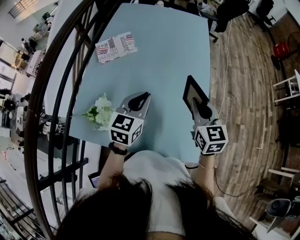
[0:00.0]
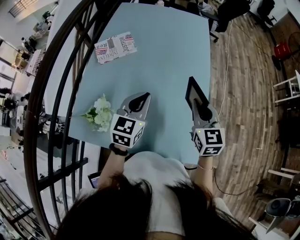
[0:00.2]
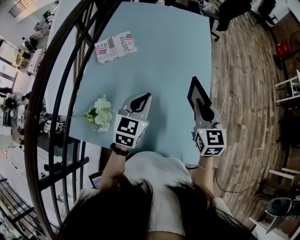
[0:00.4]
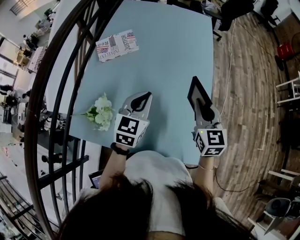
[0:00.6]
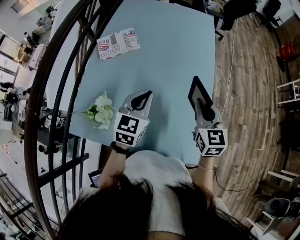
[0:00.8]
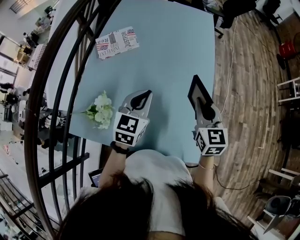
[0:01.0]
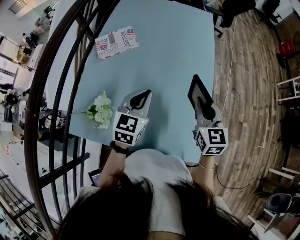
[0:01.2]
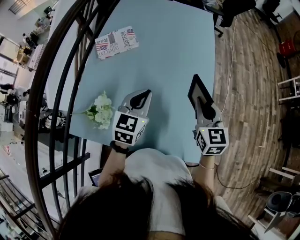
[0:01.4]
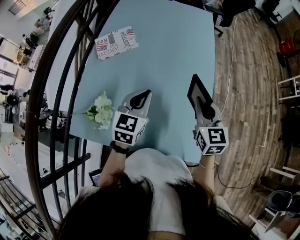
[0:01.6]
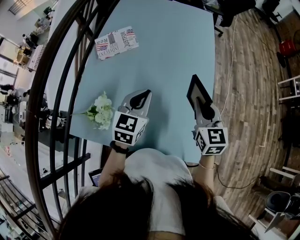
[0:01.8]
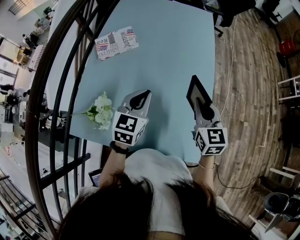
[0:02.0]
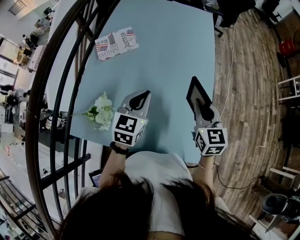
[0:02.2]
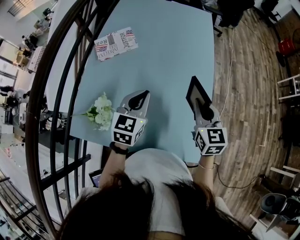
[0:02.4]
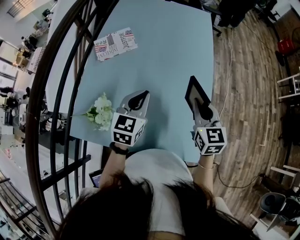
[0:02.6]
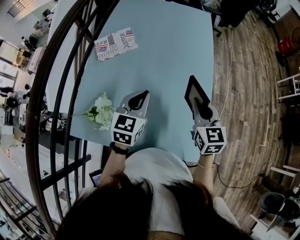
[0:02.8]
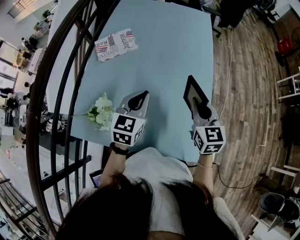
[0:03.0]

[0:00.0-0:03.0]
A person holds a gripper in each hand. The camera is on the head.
0:00.0 to 0:03.0: The grippers make only small movements.

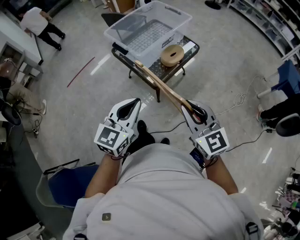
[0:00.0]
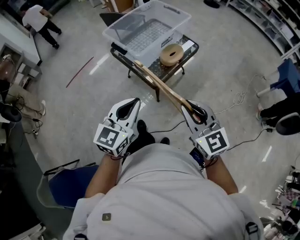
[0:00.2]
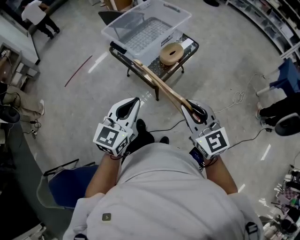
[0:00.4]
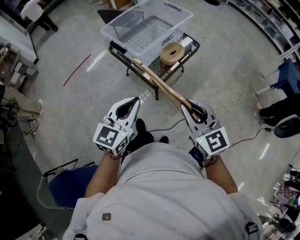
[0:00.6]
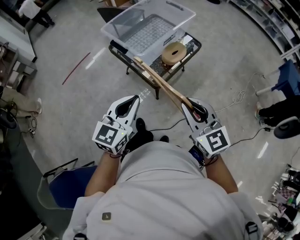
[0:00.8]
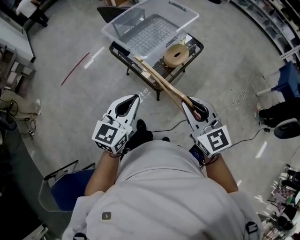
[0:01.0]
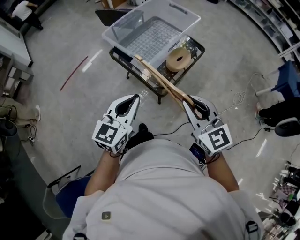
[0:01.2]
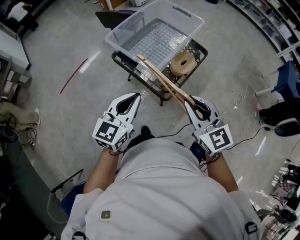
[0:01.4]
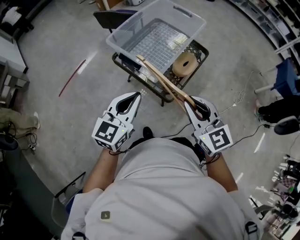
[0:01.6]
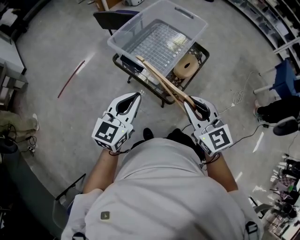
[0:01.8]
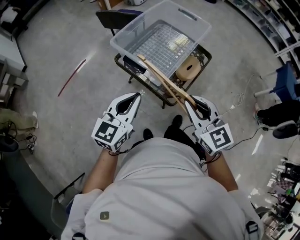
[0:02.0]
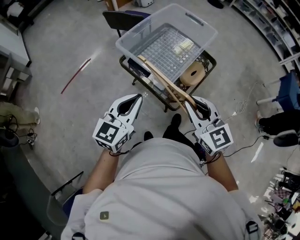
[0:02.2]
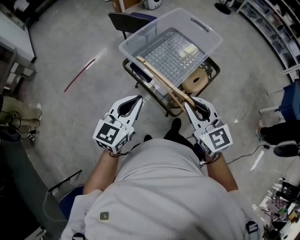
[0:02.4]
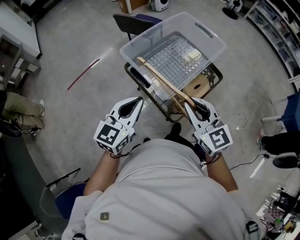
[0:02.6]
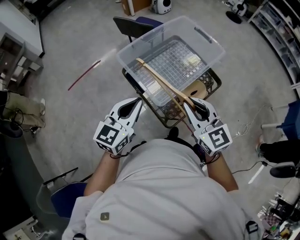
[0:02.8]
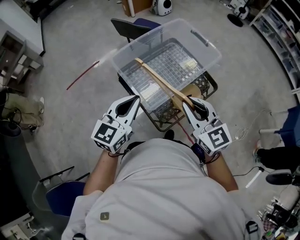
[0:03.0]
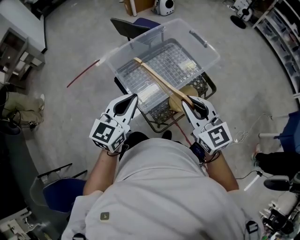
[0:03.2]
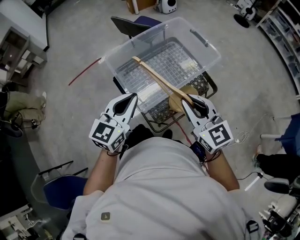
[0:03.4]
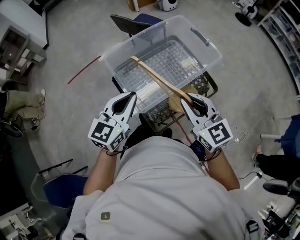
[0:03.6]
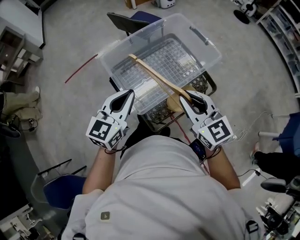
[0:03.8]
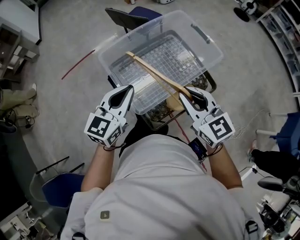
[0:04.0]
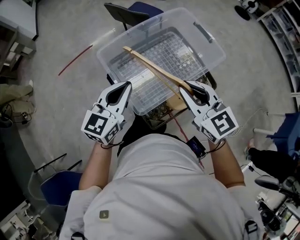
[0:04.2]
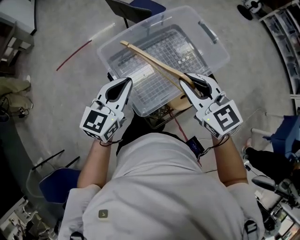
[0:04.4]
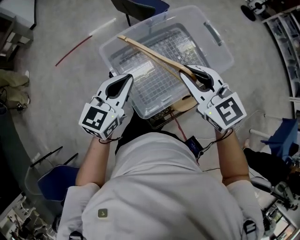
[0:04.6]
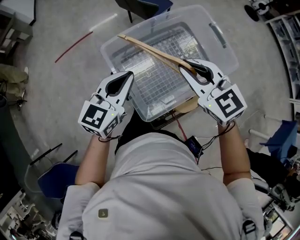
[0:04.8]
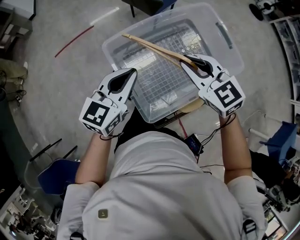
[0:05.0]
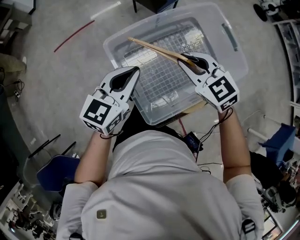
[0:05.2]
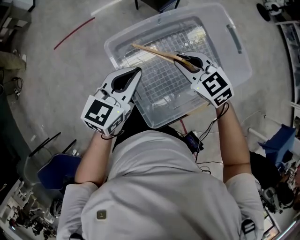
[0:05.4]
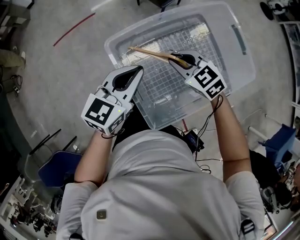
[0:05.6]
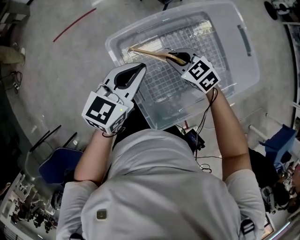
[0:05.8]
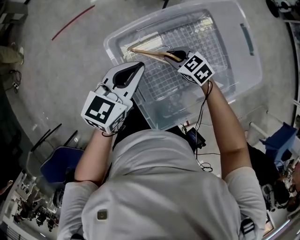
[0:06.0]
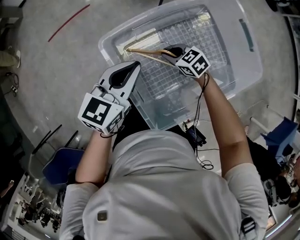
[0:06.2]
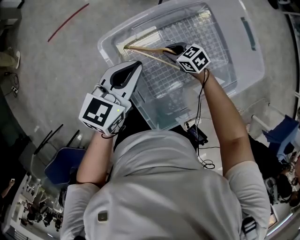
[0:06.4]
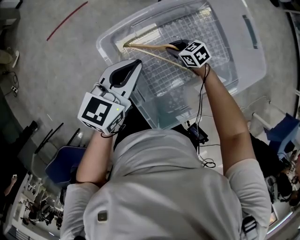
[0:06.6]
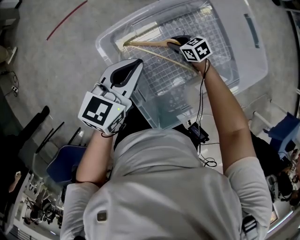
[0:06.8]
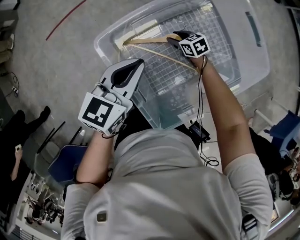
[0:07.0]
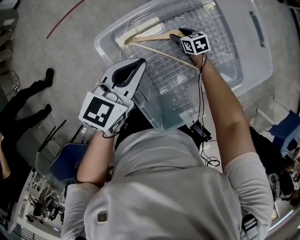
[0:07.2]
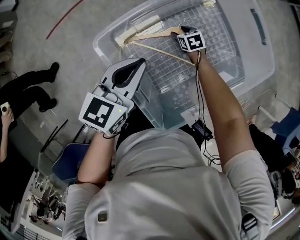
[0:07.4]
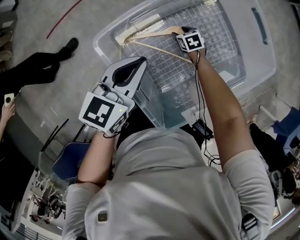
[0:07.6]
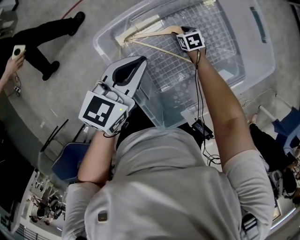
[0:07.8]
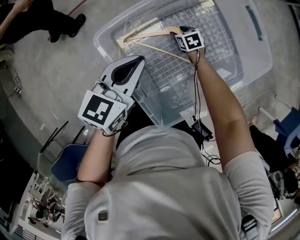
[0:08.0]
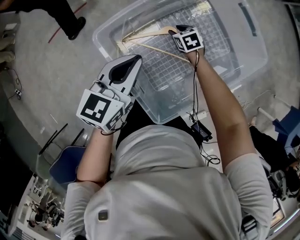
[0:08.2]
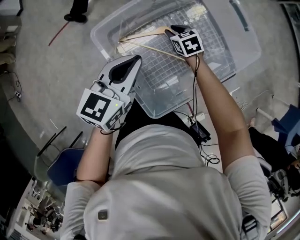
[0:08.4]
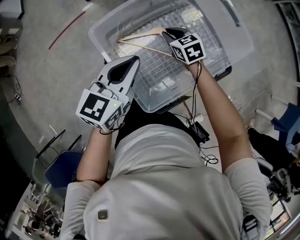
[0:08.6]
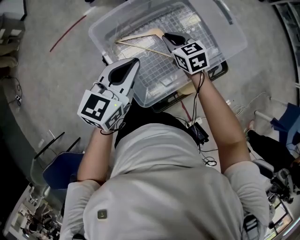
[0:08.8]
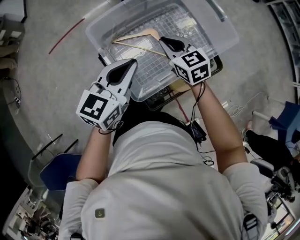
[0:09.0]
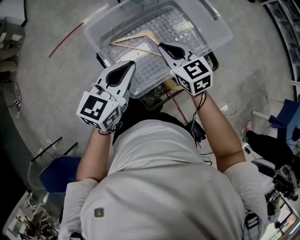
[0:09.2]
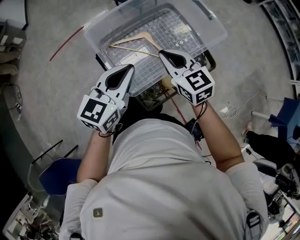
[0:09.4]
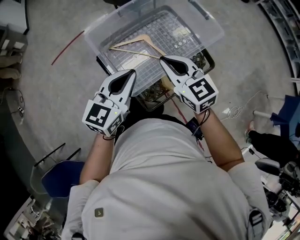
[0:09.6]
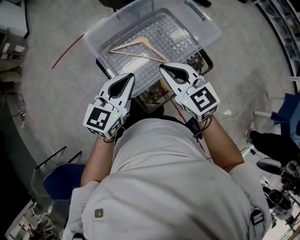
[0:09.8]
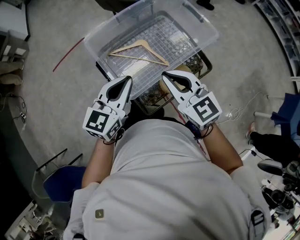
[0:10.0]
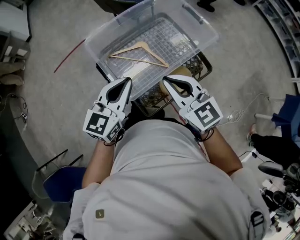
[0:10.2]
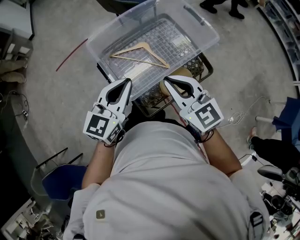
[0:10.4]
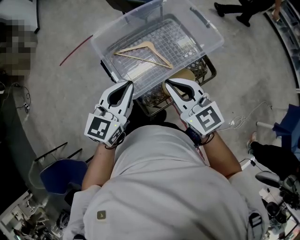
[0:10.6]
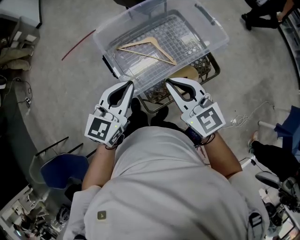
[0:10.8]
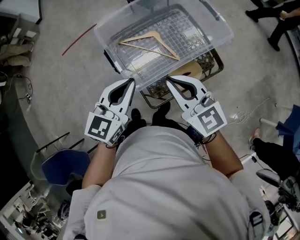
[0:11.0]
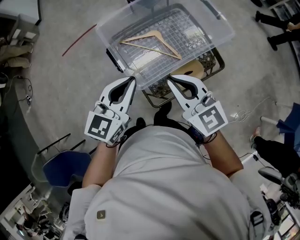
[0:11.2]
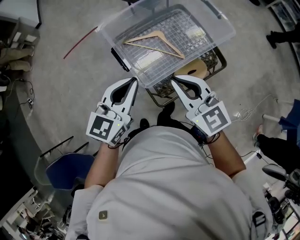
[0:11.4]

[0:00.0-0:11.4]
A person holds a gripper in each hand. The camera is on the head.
0:00.0 to 0:01.4: Both grippers move forward and to the left, roughly 25 cm.
0:01.4 to 0:02.8: Both grippers move forward, some 15 cm.
0:02.8 to 0:04.2: Both grippers move forward and to the right, roughly 15 cm.
0:04.2 to 0:05.6: The left gripper moves forward and downward, approximately 20 cm, while the right gripper goes roughly 30 cm forward, downward and to the left, and turns by some 30 degrees.
0:05.6 to 0:07.2: The right gripper goes approximately 30 cm downward, changes its angle by approximately 40 degrees, and opens. Meanwhile the left gripper goes roughly 5 cm downward.
0:07.2 to 0:08.6: The right gripper goes about 20 cm upward, and closes up; the left gripper moves backward and upward, some 10 cm.
0:08.6 to 0:10.0: The right gripper moves backward and upward, approximately 40 cm, and rotates some 30 degrees. Meanwhile the left gripper moves backward, to the right and upward, roughly 20 cm.
0:10.0 to 0:11.4: The left gripper shifts by some 5 cm. Meanwhile the right gripper shifts by some 5 cm.

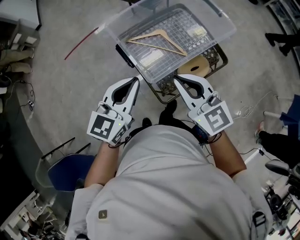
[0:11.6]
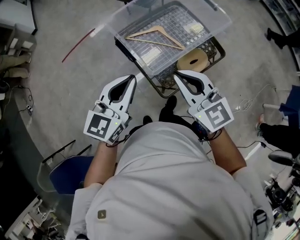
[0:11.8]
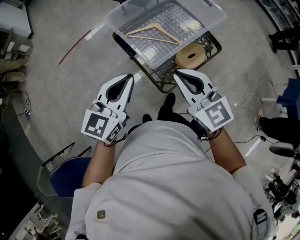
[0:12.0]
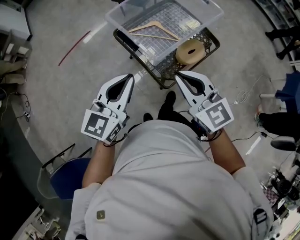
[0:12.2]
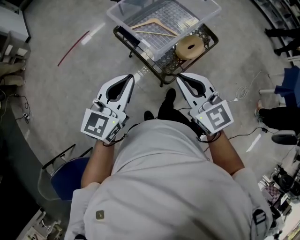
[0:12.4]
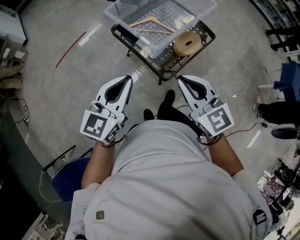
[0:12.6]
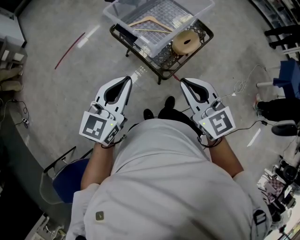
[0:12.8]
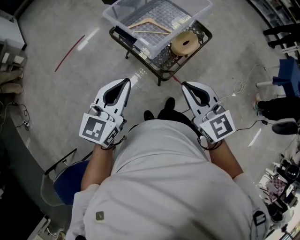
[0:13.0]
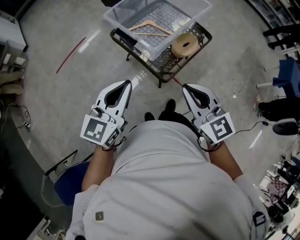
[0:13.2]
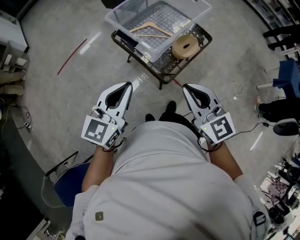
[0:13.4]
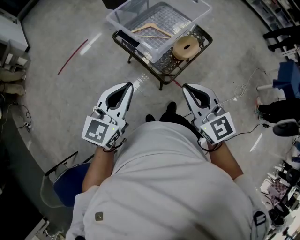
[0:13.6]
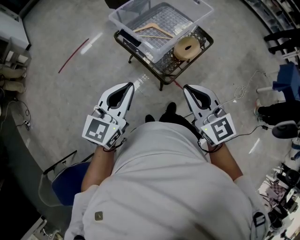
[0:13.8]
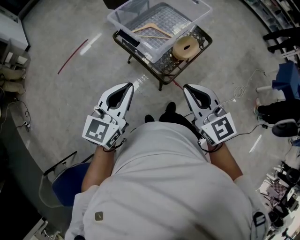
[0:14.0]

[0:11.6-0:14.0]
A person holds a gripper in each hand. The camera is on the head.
0:11.6 to 0:12.8: The right gripper goes approximately 20 cm backward; the left gripper is displaced backward and to the left by some 20 cm.
0:12.8 to 0:14.0: The grippers make only small movements.

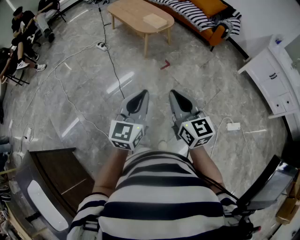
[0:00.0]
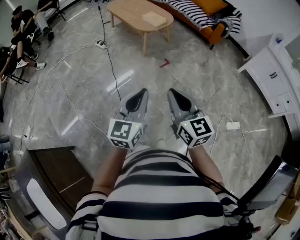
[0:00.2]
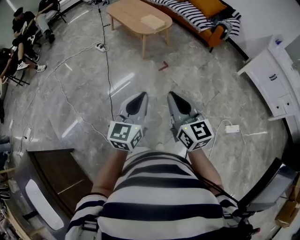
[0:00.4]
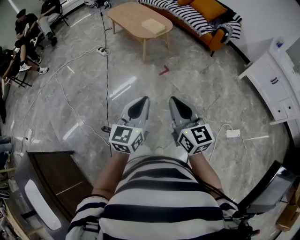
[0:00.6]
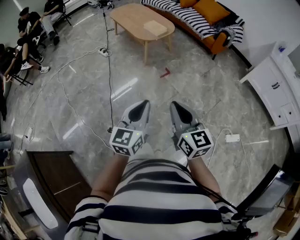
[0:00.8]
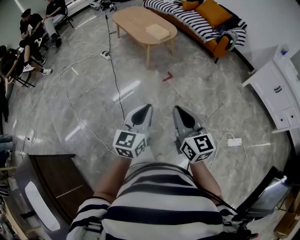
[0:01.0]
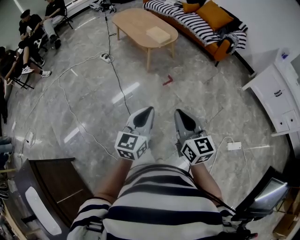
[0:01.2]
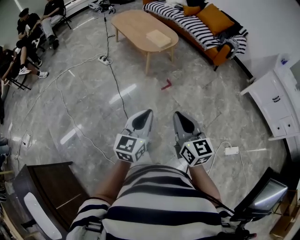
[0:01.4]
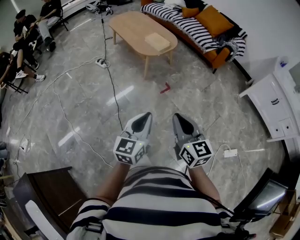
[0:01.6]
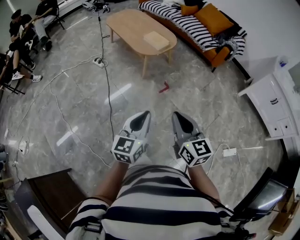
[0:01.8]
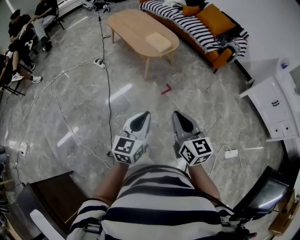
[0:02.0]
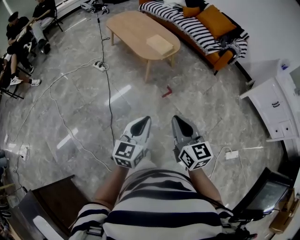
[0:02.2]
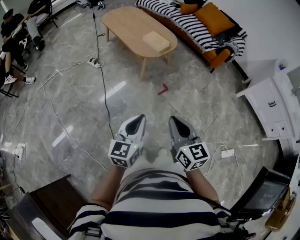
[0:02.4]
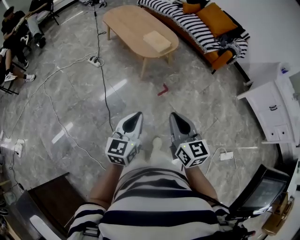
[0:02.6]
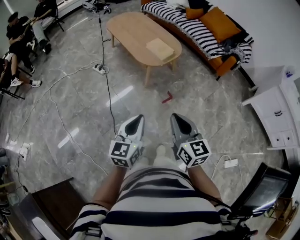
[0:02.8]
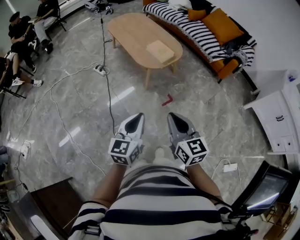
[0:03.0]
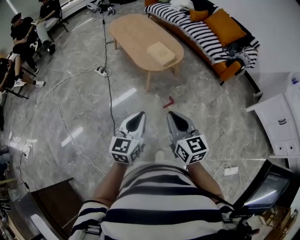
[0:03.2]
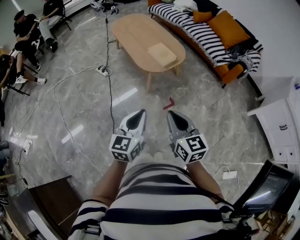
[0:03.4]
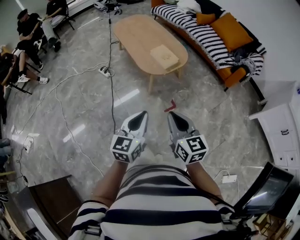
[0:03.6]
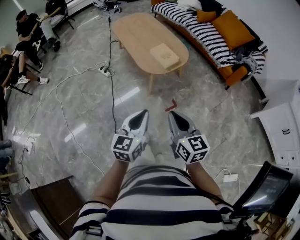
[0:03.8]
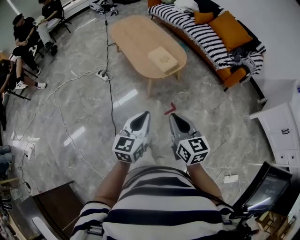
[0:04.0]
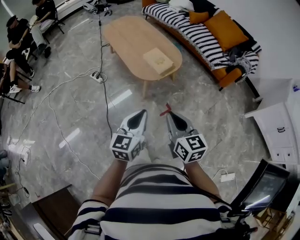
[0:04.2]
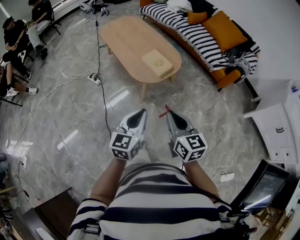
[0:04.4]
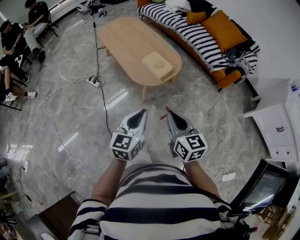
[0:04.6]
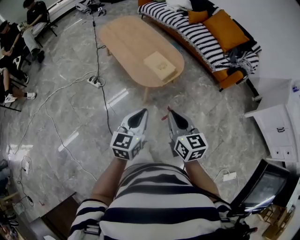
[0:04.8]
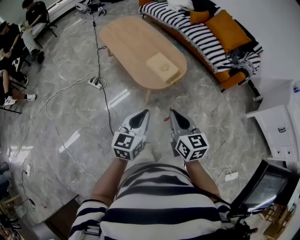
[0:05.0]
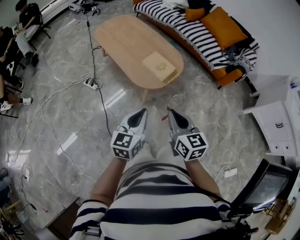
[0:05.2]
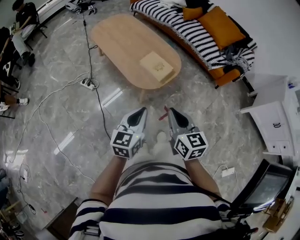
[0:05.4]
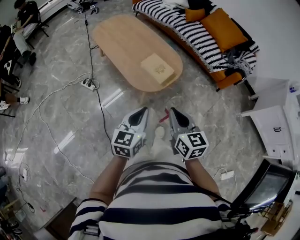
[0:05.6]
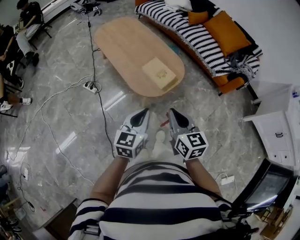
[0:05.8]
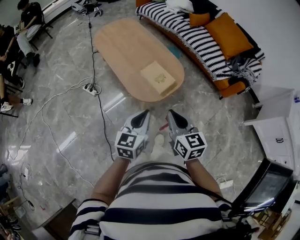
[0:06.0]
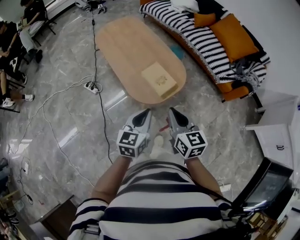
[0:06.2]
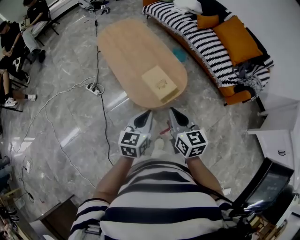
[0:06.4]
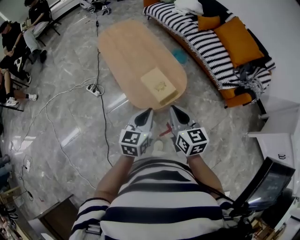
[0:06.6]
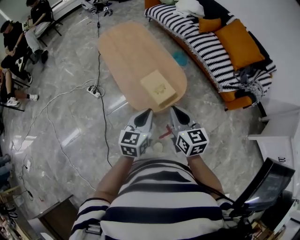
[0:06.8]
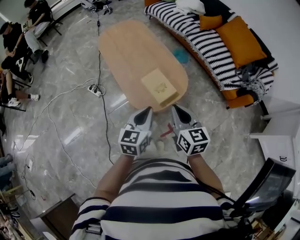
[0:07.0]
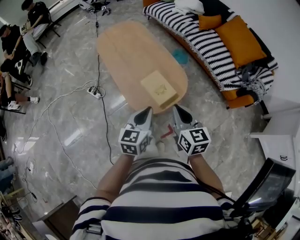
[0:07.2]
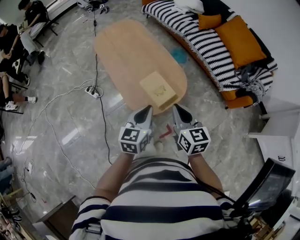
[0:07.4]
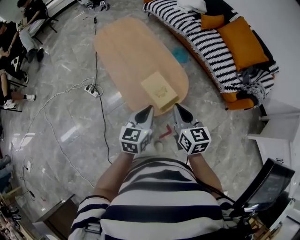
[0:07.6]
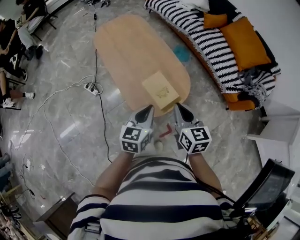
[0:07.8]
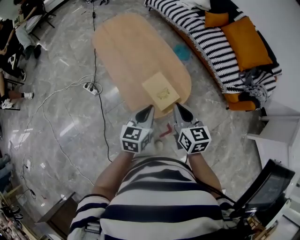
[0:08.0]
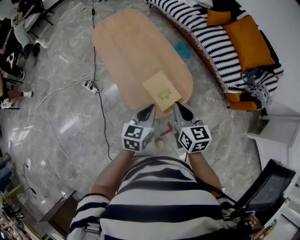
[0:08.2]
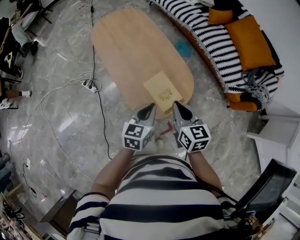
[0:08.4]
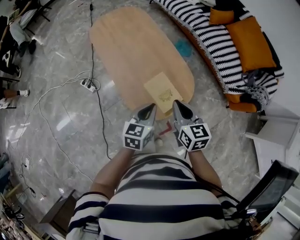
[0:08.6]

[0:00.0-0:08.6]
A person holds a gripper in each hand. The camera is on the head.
0:00.0 to 0:01.4: Both grippers move forward, approximately 10 cm.
0:01.4 to 0:02.8: The grippers both shift forward by approximately 20 cm.
0:02.8 to 0:04.4: Both grippers travel together forward, roughly 20 cm.
0:04.4 to 0:05.8: Both grippers travel together forward, about 15 cm.
0:05.8 to 0:07.2: The two grippers go about 15 cm forward and to the right.
0:07.2 to 0:08.6: The left gripper heads forward and downward, covering about 15 cm. Meanwhile the right gripper heads forward, covering some 10 cm.
